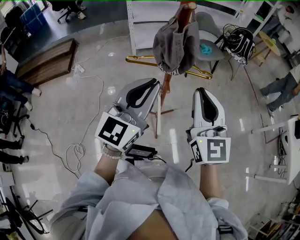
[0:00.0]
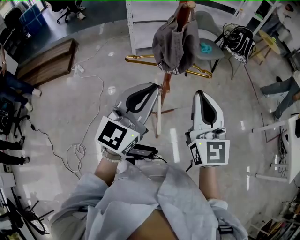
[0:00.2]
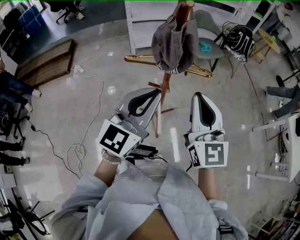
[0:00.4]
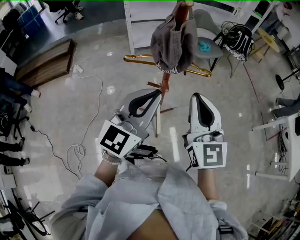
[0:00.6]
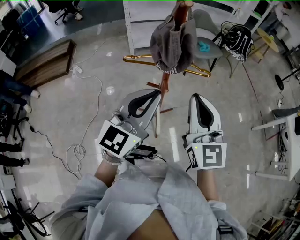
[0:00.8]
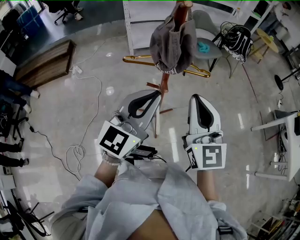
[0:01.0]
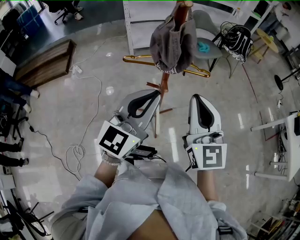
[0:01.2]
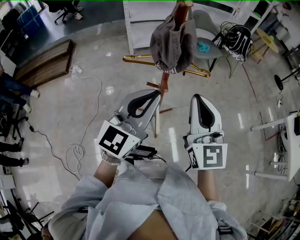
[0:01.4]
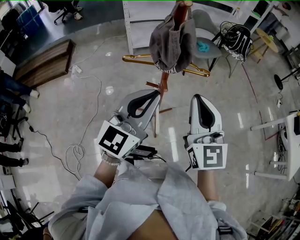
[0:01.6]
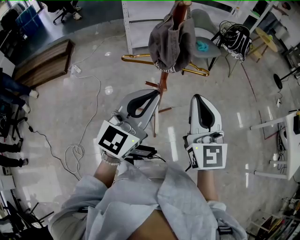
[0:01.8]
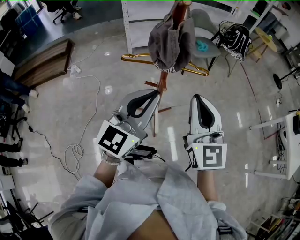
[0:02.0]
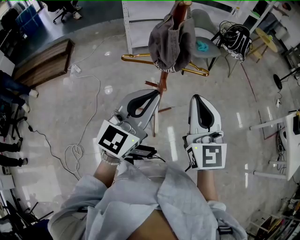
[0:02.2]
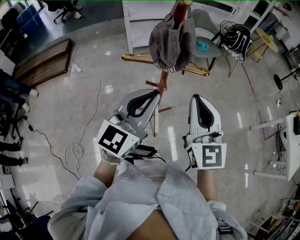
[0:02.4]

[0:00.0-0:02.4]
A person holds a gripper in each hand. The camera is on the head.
0.0 to 1.2 s: The grippers move only a little.
1.2 to 2.4 s: The two grippers keep their place.

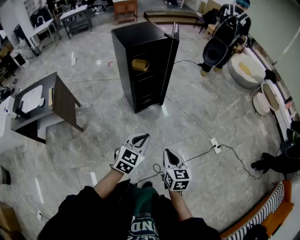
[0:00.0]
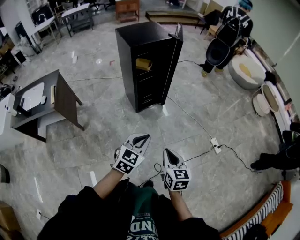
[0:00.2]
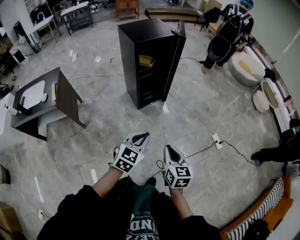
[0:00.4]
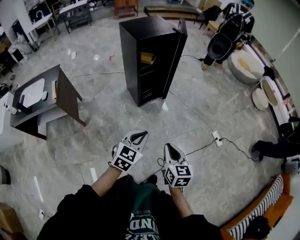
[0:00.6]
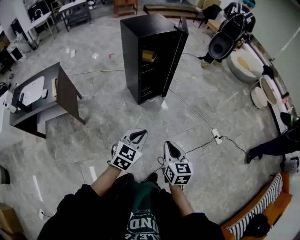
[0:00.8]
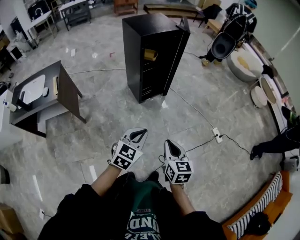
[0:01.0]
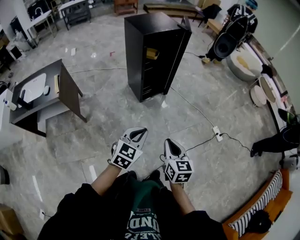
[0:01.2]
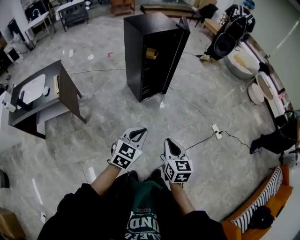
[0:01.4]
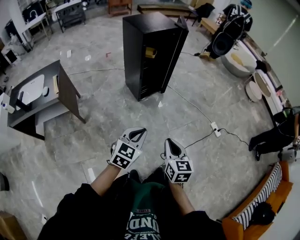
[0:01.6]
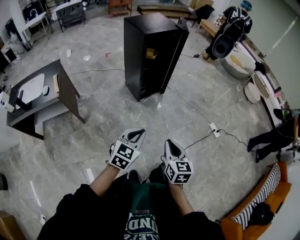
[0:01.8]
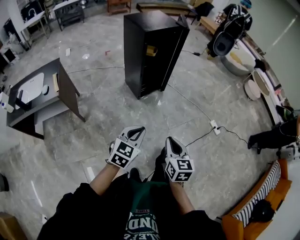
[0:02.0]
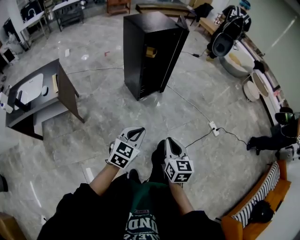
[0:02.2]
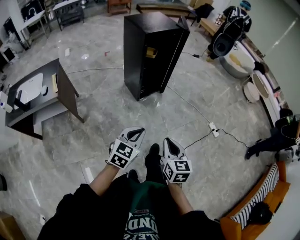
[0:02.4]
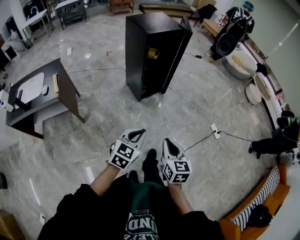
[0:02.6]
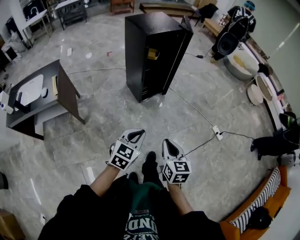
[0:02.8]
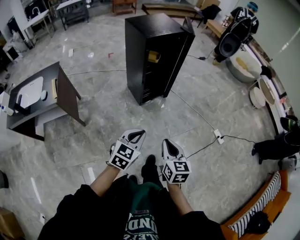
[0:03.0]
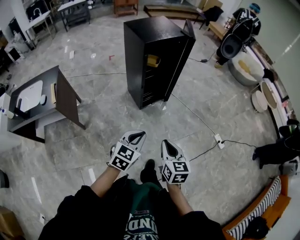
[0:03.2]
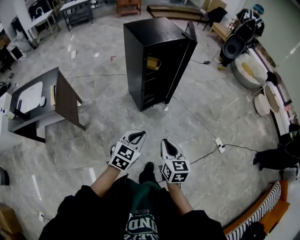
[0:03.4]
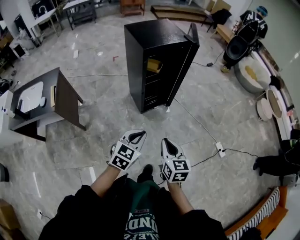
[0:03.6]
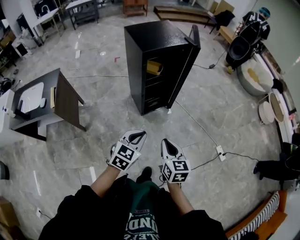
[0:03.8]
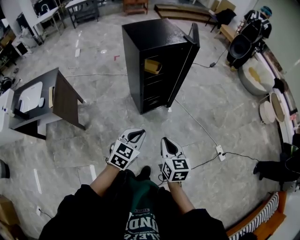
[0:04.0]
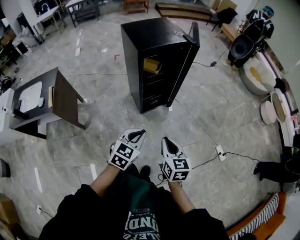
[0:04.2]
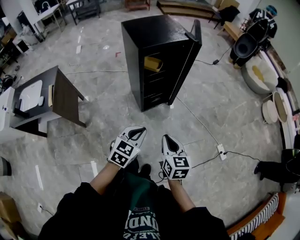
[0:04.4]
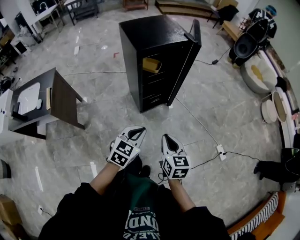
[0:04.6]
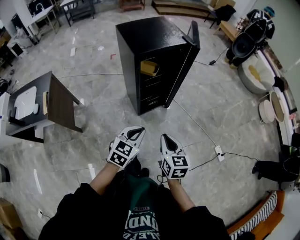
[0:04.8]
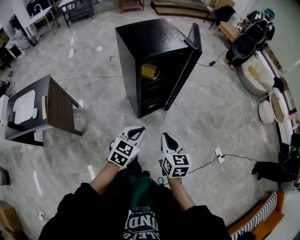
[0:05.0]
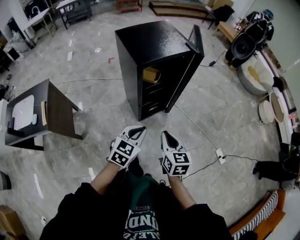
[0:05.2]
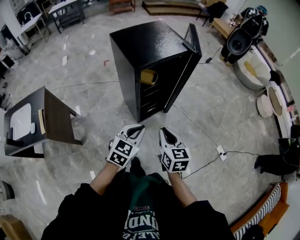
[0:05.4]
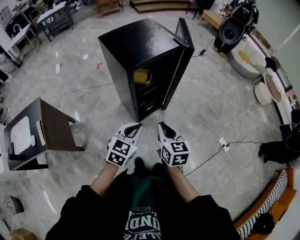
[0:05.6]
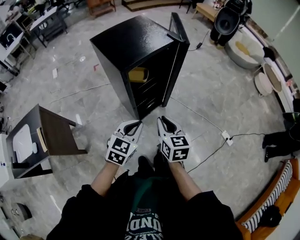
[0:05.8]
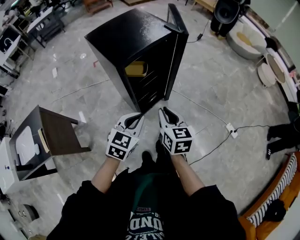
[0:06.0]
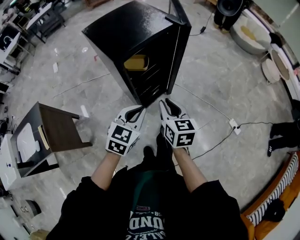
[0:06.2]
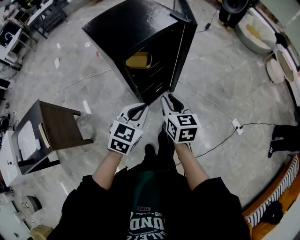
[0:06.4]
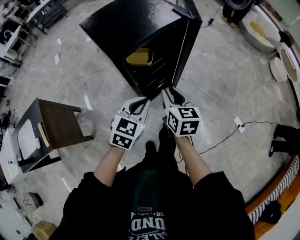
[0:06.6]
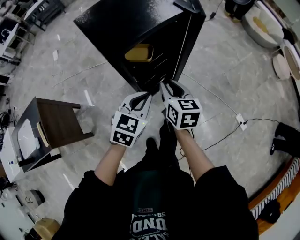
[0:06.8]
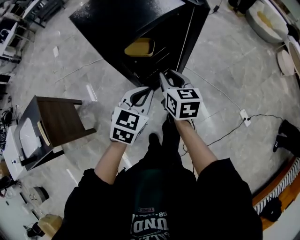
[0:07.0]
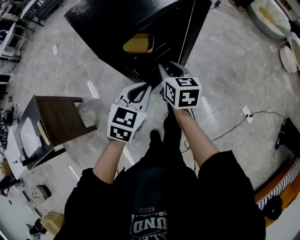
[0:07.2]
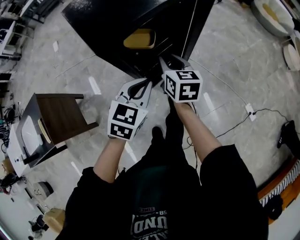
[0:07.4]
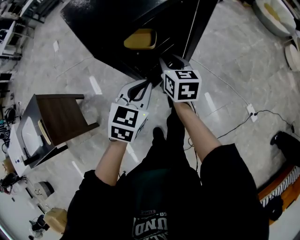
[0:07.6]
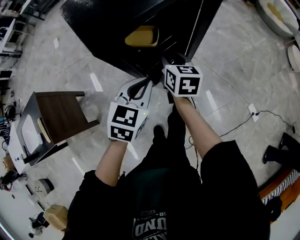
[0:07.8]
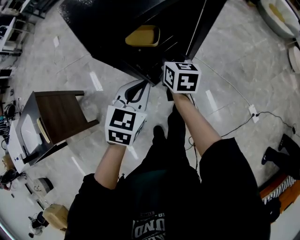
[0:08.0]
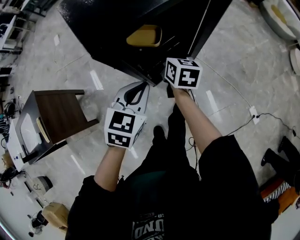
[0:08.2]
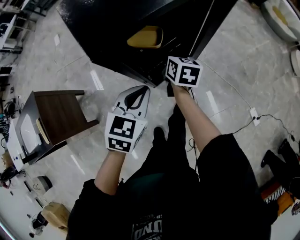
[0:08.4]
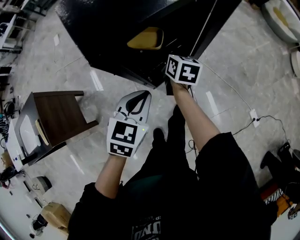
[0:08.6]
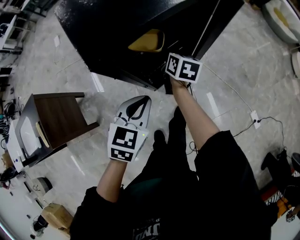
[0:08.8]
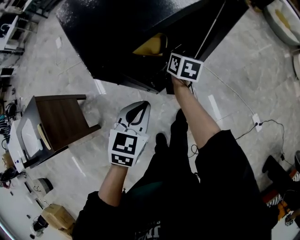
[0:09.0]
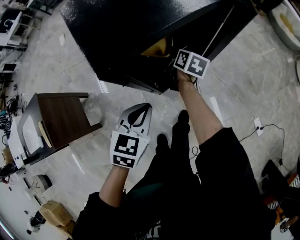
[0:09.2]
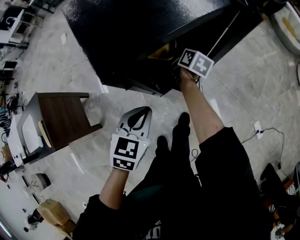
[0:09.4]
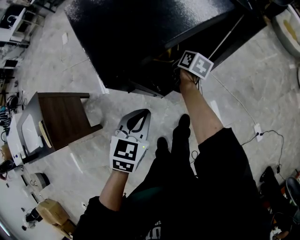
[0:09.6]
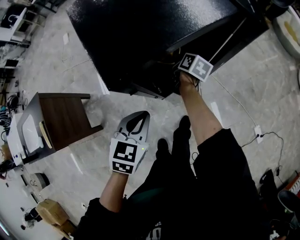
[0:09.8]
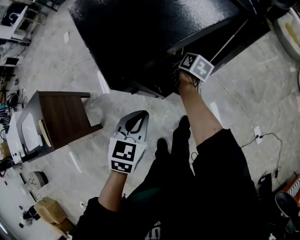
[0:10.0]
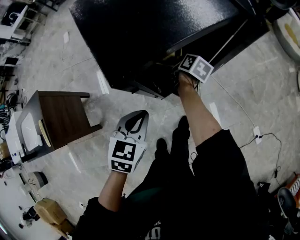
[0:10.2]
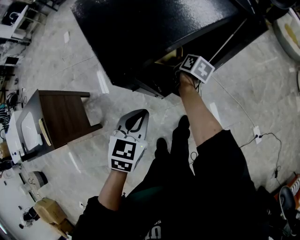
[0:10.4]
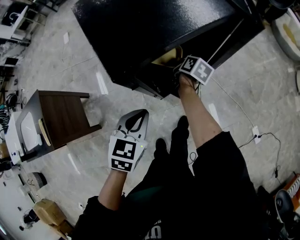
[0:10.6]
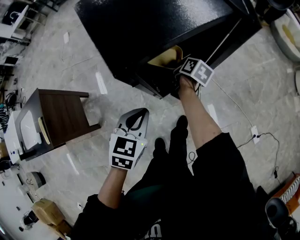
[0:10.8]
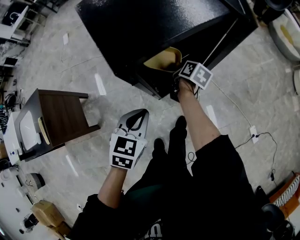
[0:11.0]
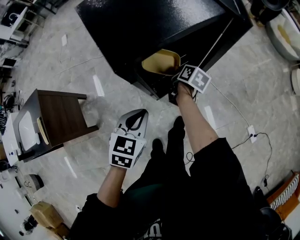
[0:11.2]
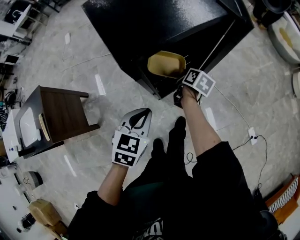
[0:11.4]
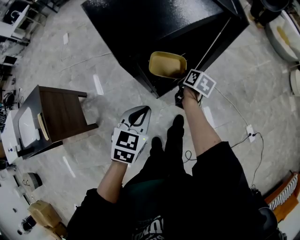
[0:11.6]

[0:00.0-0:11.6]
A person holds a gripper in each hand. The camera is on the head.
0.0 to 1.4 s: The grippers both shift to the left and backward by some 20 cm.
1.4 to 2.8 s: The grippers make only small movements.
2.8 to 4.4 s: The two grippers go approximately 25 cm forward.
4.4 to 5.8 s: The right gripper heads forward and to the left, covering some 20 cm. The left gripper is displaced forward by about 15 cm.
5.8 to 7.2 s: Both grippers move forward and downward, roughly 20 cm.
7.2 to 8.8 s: The left gripper travels downward by roughly 5 cm, while the right gripper is displaced forward and downward by approximately 20 cm.
8.8 to 10.2 s: The left gripper goes approximately 5 cm to the left, while the right gripper is displaced downward by about 5 cm, turns by some 20 degrees, and closes up.
10.2 to 11.6 s: The right gripper heads backward, covering approximately 10 cm.

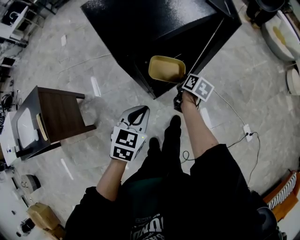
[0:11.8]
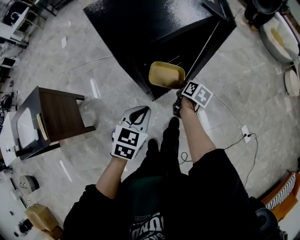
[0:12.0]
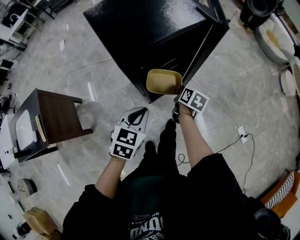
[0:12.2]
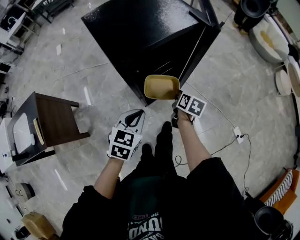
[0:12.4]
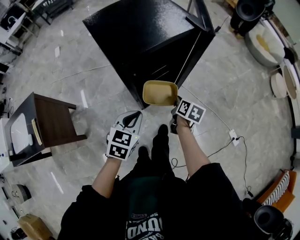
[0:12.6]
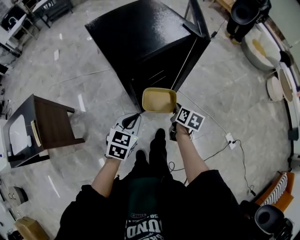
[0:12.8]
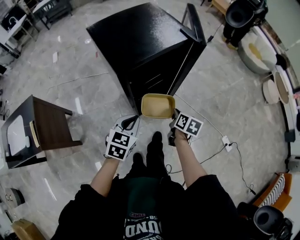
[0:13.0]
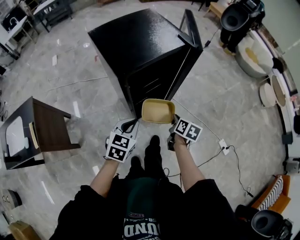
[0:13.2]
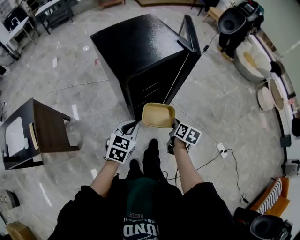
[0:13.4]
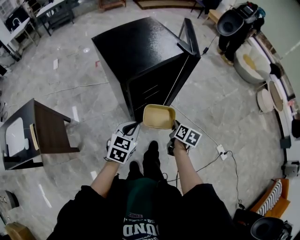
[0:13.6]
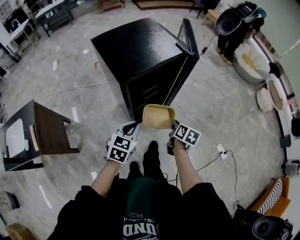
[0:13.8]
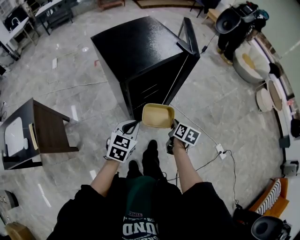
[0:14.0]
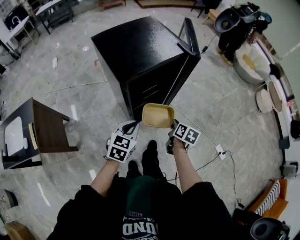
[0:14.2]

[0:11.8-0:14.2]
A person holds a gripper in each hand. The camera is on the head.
11.8 to 13.0 s: The right gripper shifts roughly 15 cm backward, upward and to the right; the left gripper changes place by approximately 5 cm.
13.0 to 14.2 s: The grippers move only a little.

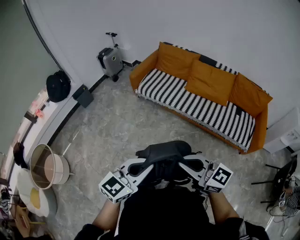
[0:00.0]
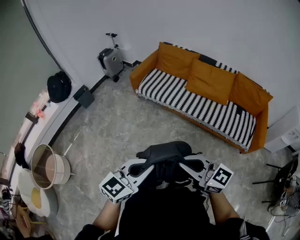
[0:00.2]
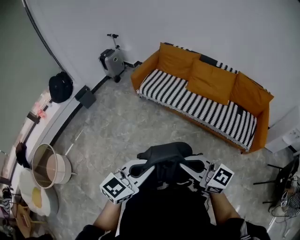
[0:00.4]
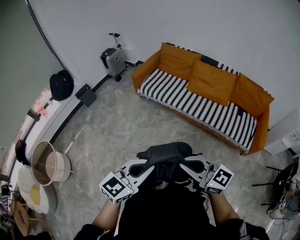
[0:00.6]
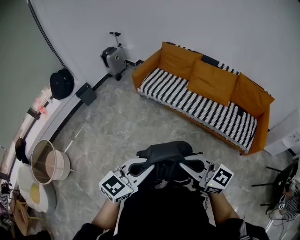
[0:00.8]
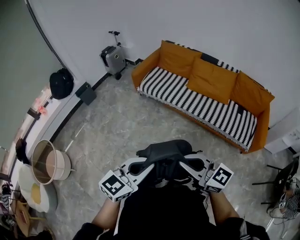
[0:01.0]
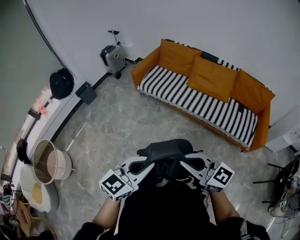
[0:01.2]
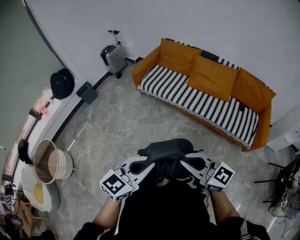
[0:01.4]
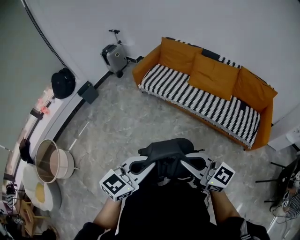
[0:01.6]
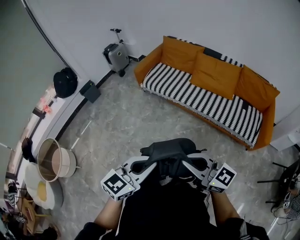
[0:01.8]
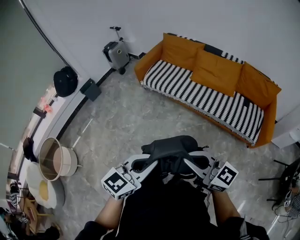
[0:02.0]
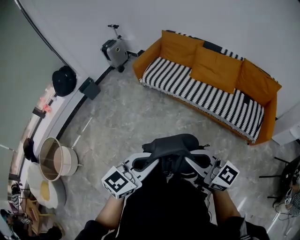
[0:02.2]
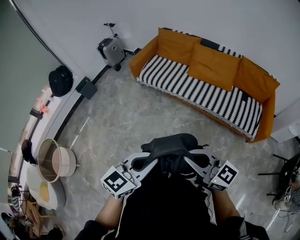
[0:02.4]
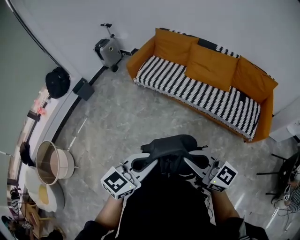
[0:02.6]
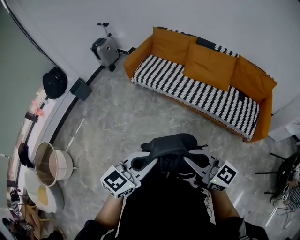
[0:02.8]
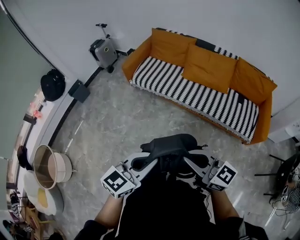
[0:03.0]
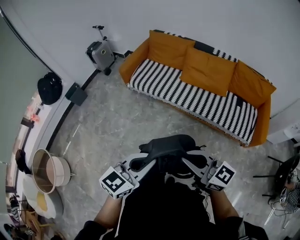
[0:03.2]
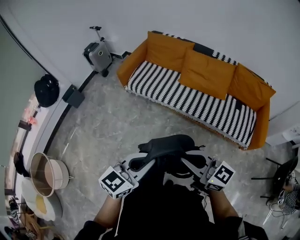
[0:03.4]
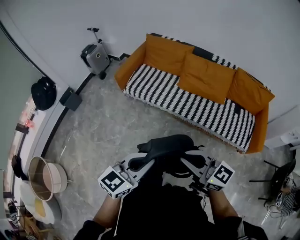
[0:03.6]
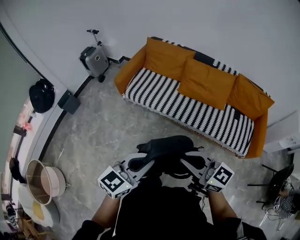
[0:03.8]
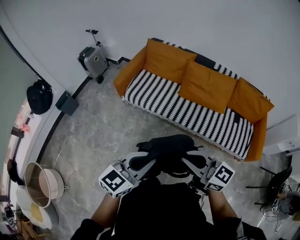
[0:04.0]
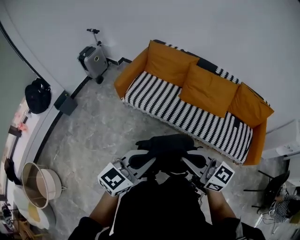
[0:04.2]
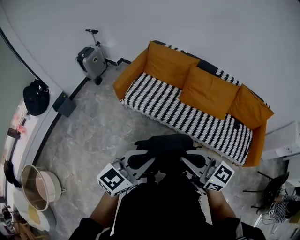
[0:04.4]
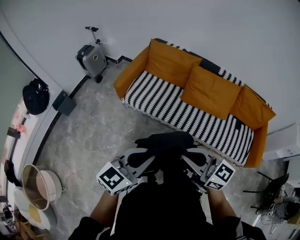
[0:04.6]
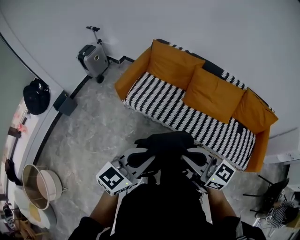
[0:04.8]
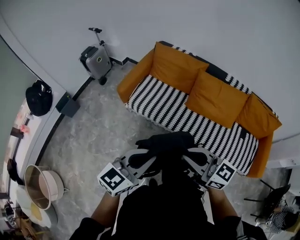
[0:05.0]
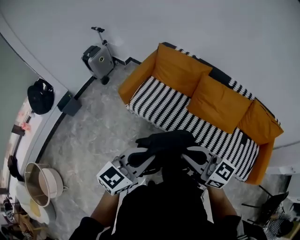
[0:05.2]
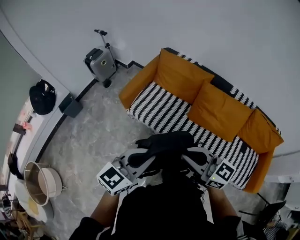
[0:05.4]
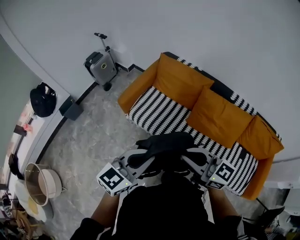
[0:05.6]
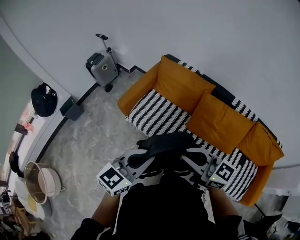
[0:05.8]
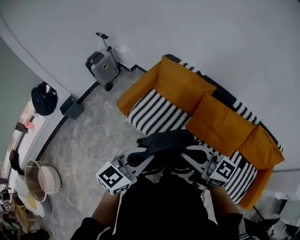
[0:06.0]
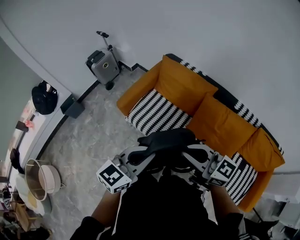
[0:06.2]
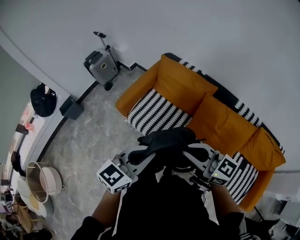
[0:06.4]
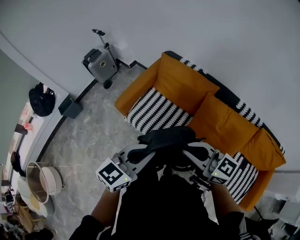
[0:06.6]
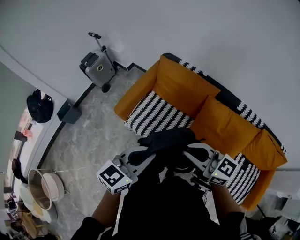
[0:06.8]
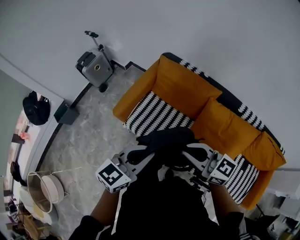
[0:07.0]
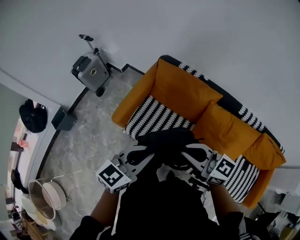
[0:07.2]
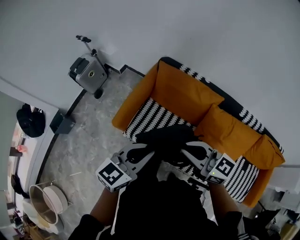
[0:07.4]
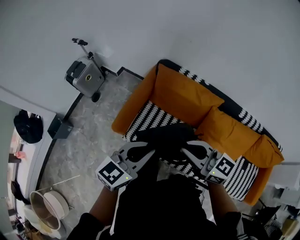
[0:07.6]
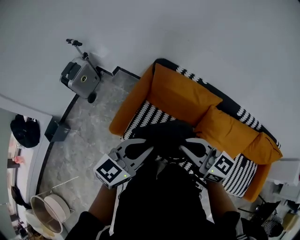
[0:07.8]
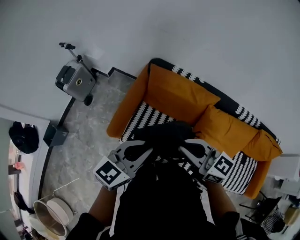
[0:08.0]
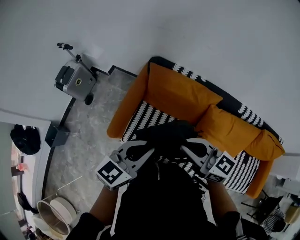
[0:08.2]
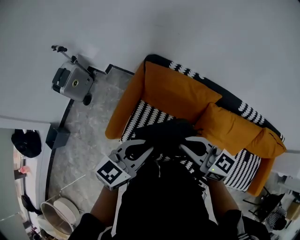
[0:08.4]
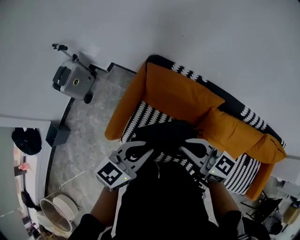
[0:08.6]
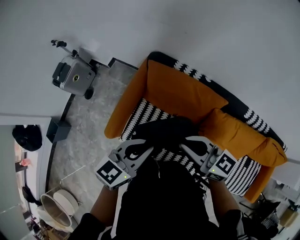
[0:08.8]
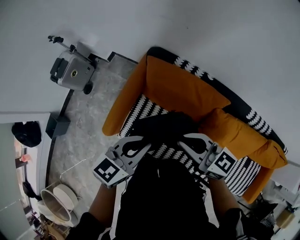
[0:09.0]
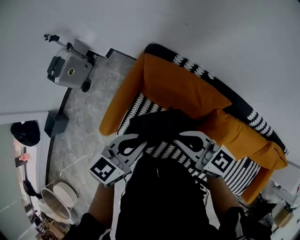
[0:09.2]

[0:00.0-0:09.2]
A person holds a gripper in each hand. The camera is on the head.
0.0 to 1.6 s: The grippers stay close to where they were, moving slightly.
1.6 to 3.0 s: The two grippers go about 5 cm forward.
3.0 to 4.6 s: Both grippers travel together forward, about 30 cm.
4.6 to 6.2 s: The two grippers go roughly 25 cm forward.
6.2 to 7.6 s: The right gripper heads forward and to the left, covering roughly 25 cm. Meanwhile the left gripper heads forward, covering some 25 cm.
7.6 to 9.2 s: Both grippers travel together forward and downward, roughly 20 cm.
